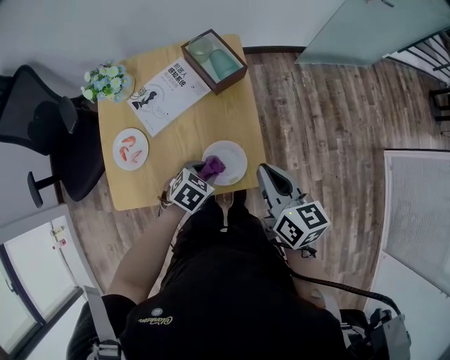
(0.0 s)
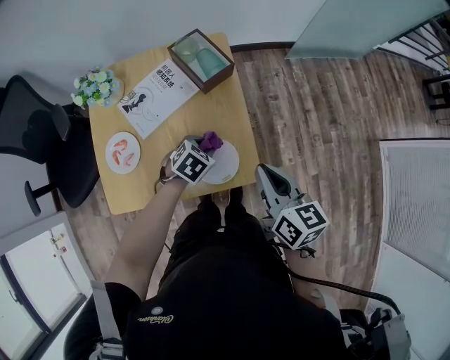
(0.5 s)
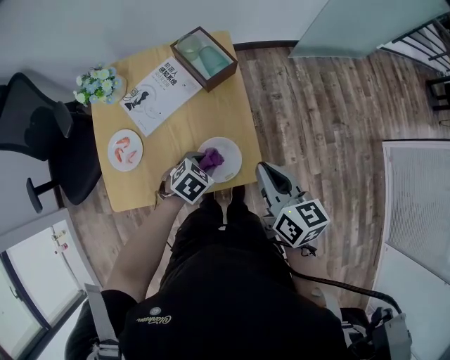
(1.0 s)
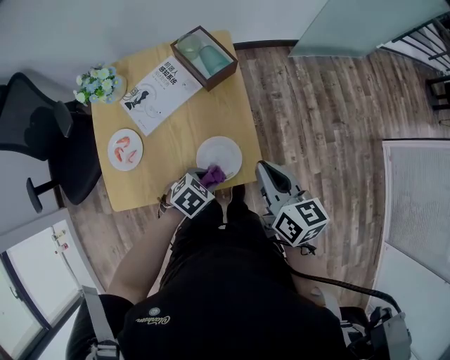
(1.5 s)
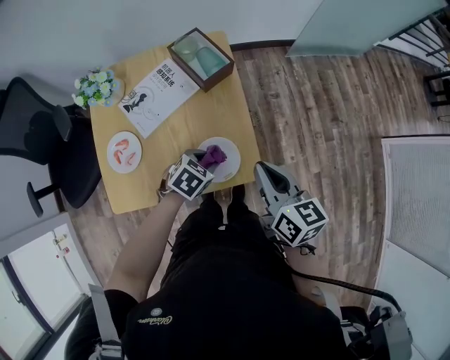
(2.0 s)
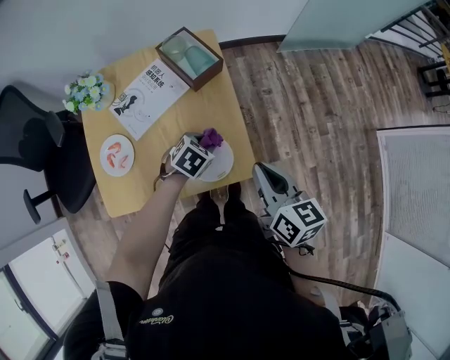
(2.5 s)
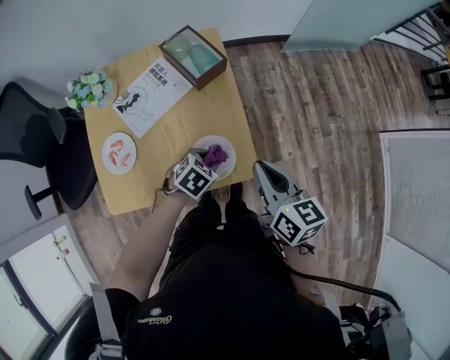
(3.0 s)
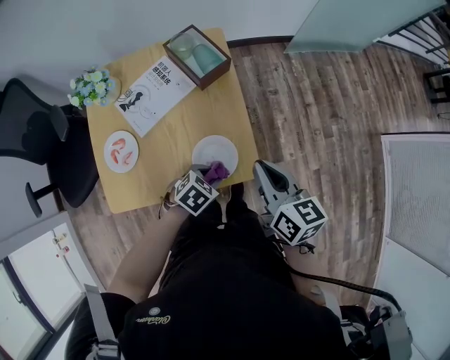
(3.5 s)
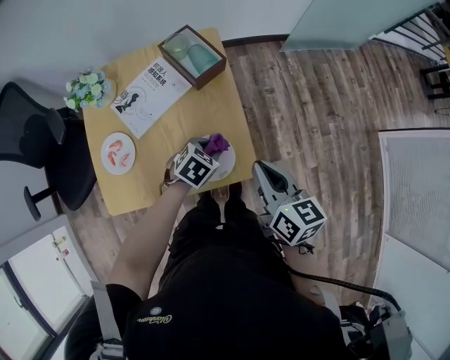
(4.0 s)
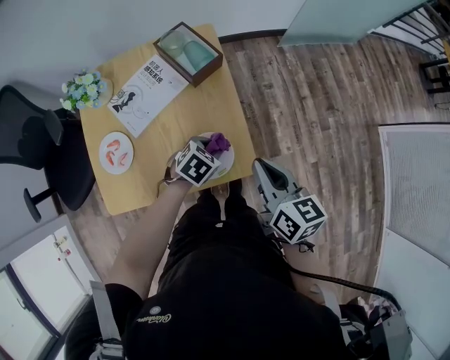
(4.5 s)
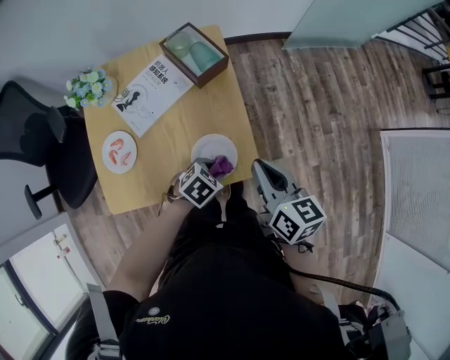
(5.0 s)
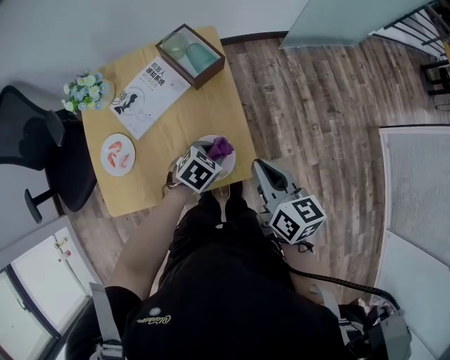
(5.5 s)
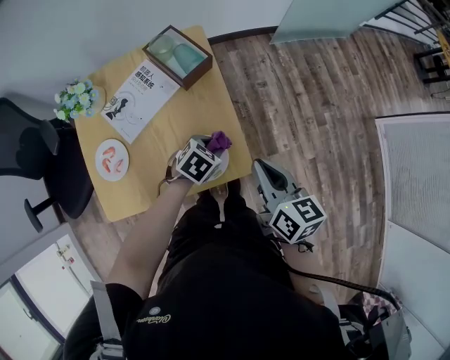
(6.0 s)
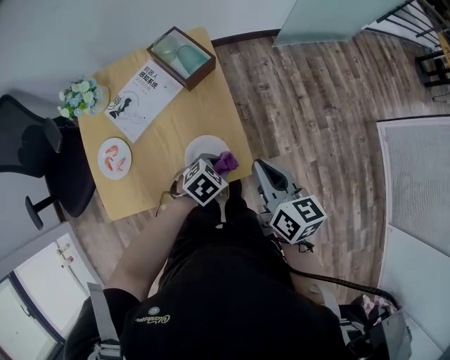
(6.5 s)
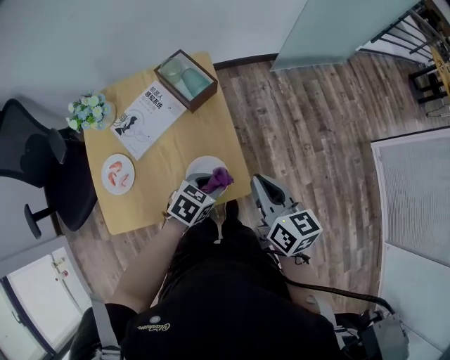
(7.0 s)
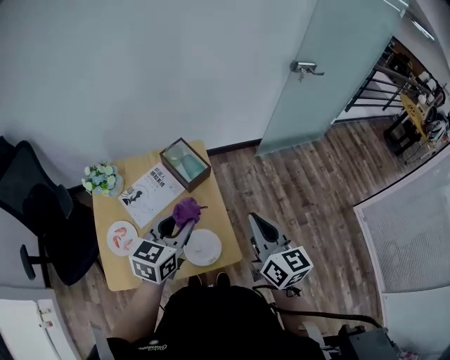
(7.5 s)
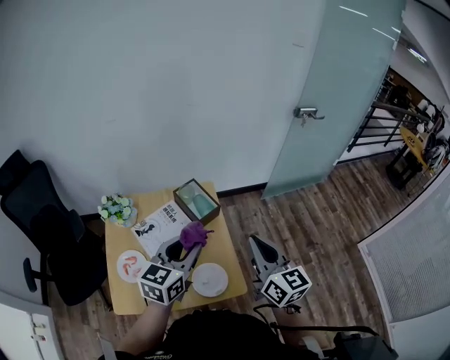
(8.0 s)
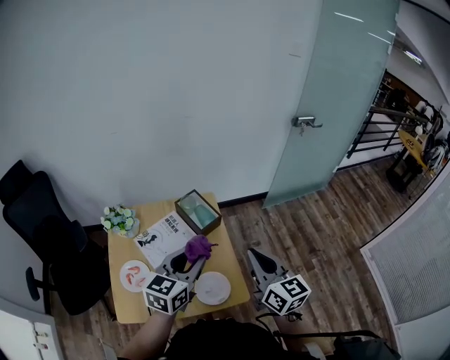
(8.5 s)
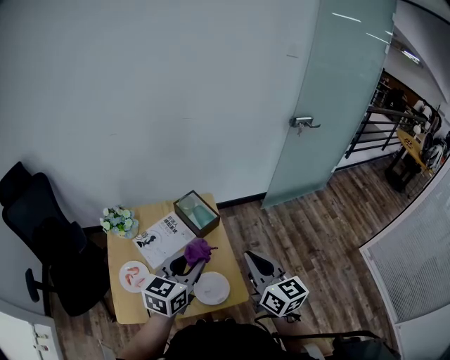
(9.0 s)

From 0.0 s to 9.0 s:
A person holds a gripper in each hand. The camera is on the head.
From 0.0 s to 2.0 s: The left gripper swings forward and backward, approximately 10 cm each way, with 2 reversals.
From 2.0 s to 4.5 s: The left gripper moves forward and backward over about 10 cm, changing direction 2 times.
From 4.5 s to 7.0 s: The left gripper swings forward and backward, roughly 10 cm each way, with 2 reversals.
From 7.0 s to 9.0 s: The left gripper travels upward by roughly 25 cm, and angles its fingers upward, by some 30 degrees, while the right gripper travels upward by roughly 15 cm, and swivels approximately 20 degrees.

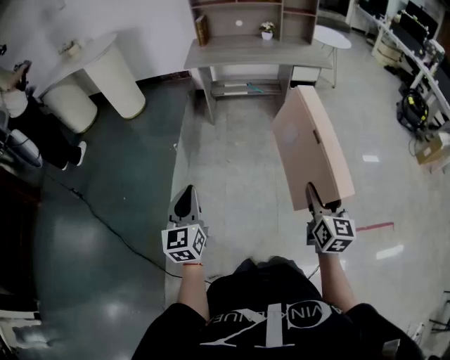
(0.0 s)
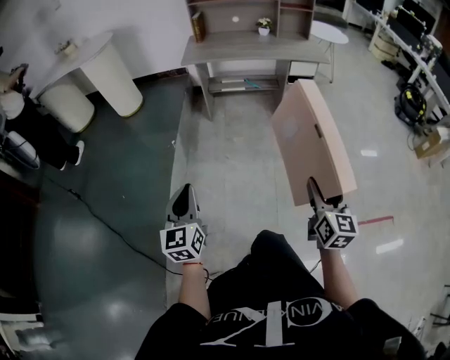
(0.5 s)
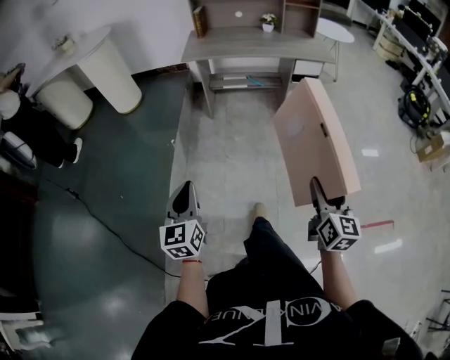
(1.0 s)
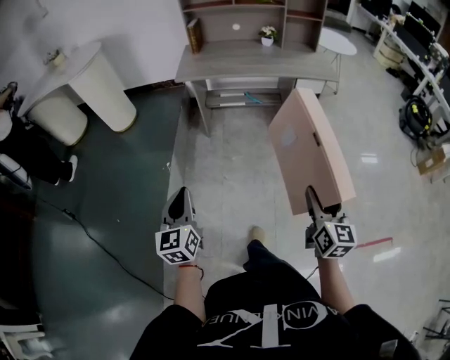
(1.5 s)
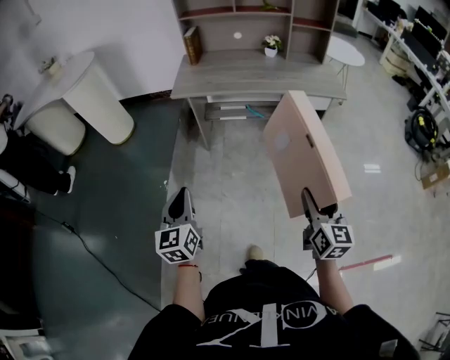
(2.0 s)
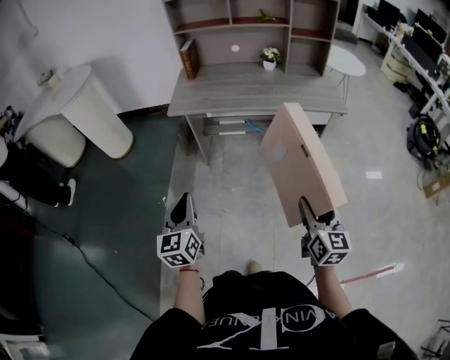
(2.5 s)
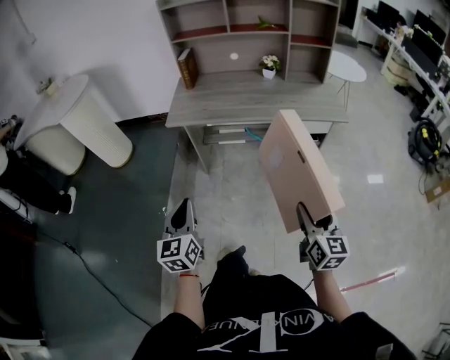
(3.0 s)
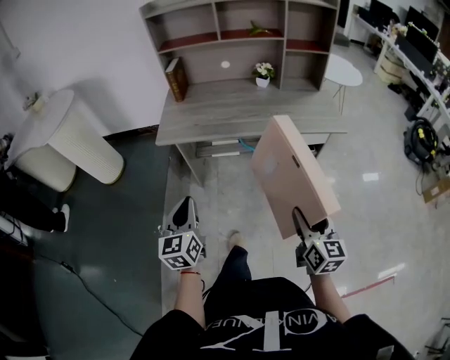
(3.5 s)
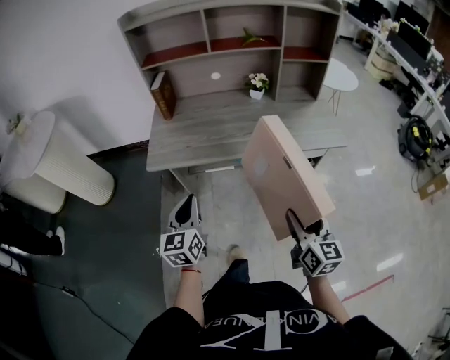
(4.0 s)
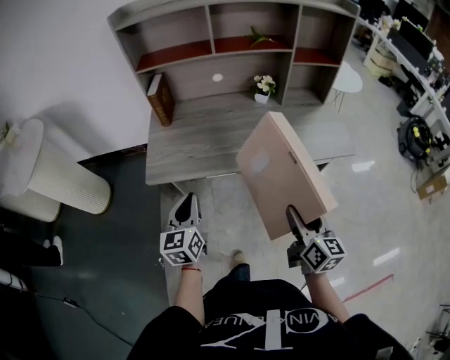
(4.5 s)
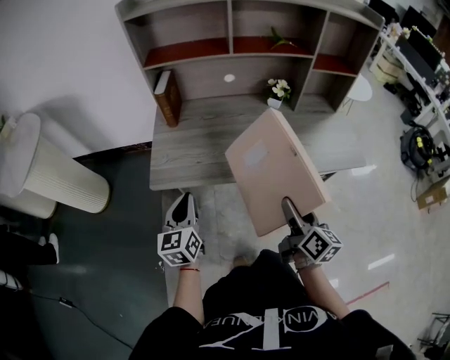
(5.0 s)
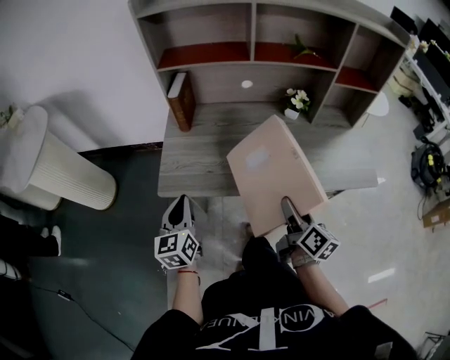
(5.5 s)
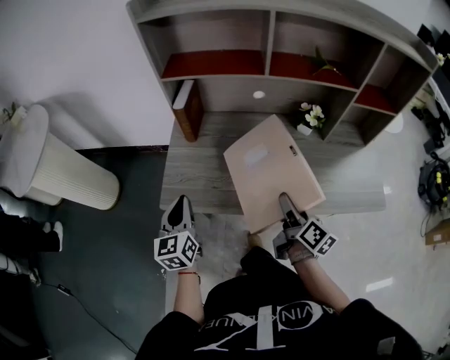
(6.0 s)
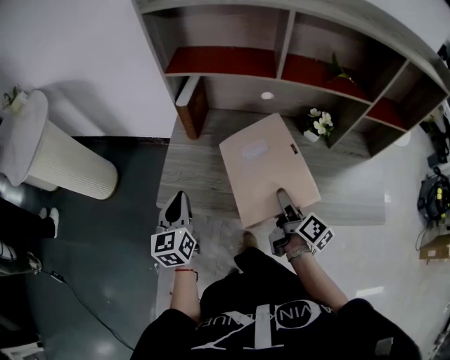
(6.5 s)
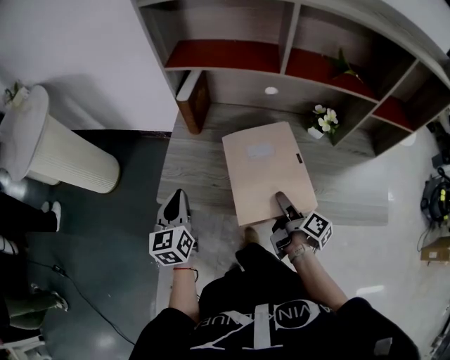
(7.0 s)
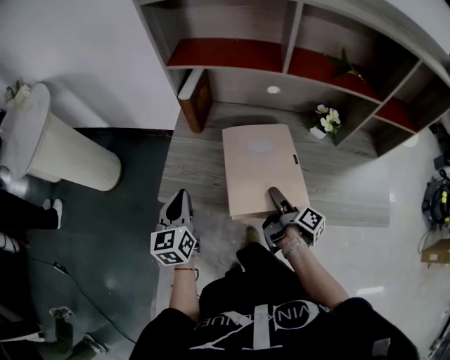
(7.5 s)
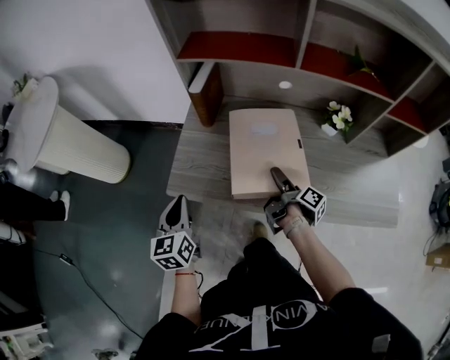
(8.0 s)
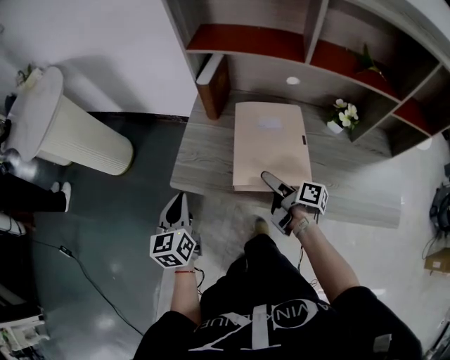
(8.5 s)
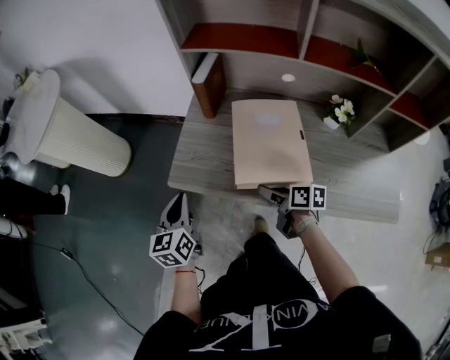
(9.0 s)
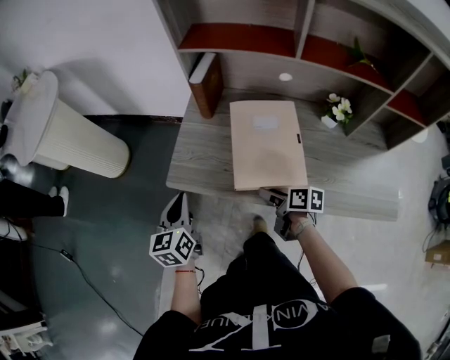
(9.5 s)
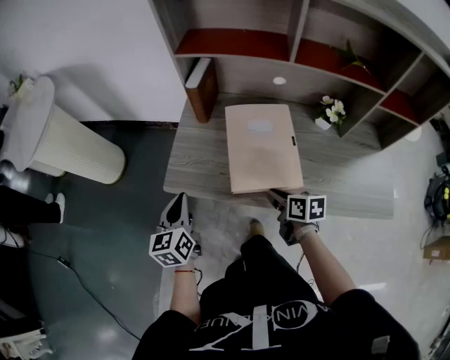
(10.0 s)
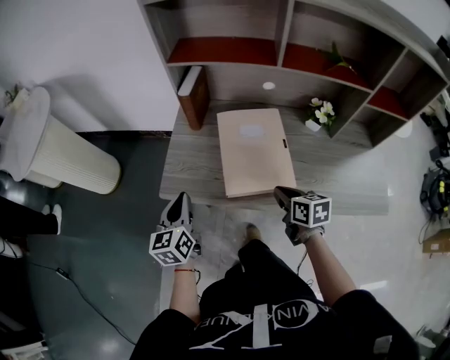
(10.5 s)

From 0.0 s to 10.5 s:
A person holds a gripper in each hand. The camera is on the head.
From 0.0 s to 2.0 s: The two grippers go roughly 30 cm forward.
From 2.0 s to 4.0 s: The two grippers go approximately 30 cm forward.
From 4.0 s to 6.5 s: Both grippers travel together forward, some 35 cm. The right gripper rotates around the line of its fingers by roughly 40 degrees, clockwise from behind.
From 6.5 s to 8.5 s: The left gripper travels to the left by about 5 cm, while the right gripper moves to the left and downward, about 10 cm, changes its angle by about 30 degrees, and opens its fingers.
From 8.5 s to 10.5 s: The right gripper shifts some 5 cm backward, rotates around the line of its fingers by approximately 40 degrees, counterclockwise from behind, and closes its fingers.

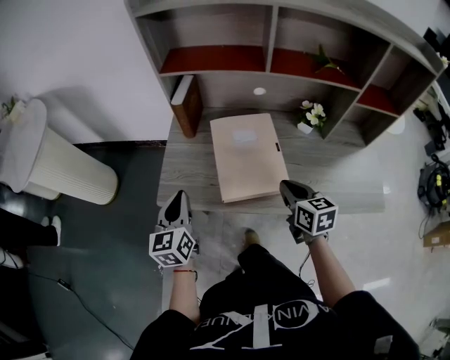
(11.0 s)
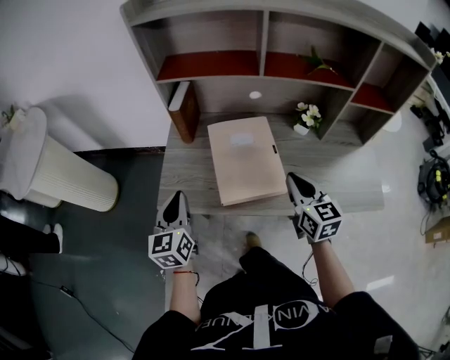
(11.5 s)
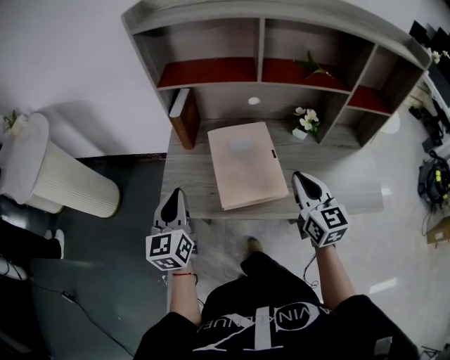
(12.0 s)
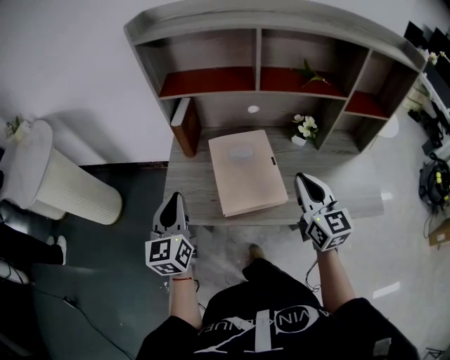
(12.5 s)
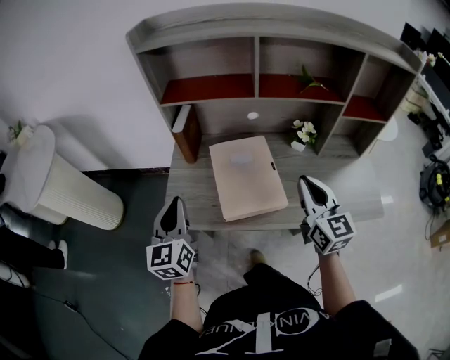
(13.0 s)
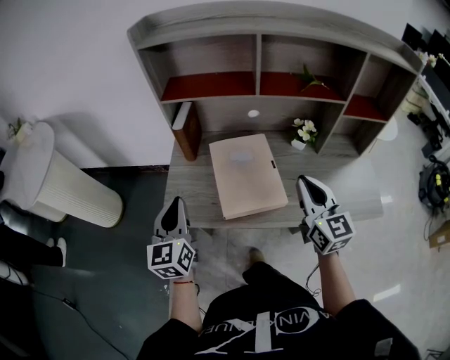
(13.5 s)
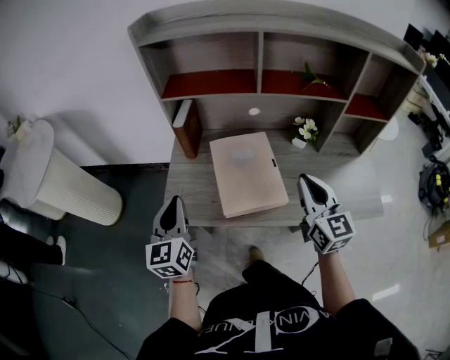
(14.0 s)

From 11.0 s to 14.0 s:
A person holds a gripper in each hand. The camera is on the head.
From 11.0 s to 12.5 s: The right gripper heads upward, covering approximately 15 cm, and rotates about 30 degrees. Meanwhile the left gripper travels upward by roughly 10 cm.
From 12.5 s to 14.0 s: The grippers move only a little.

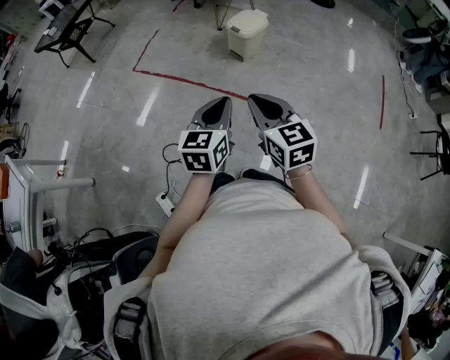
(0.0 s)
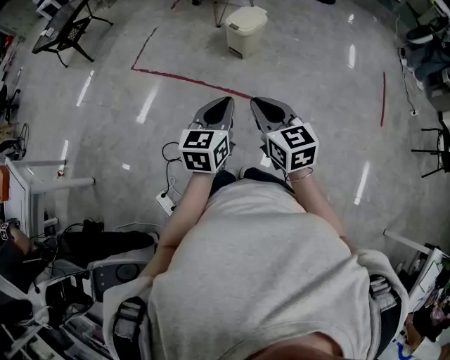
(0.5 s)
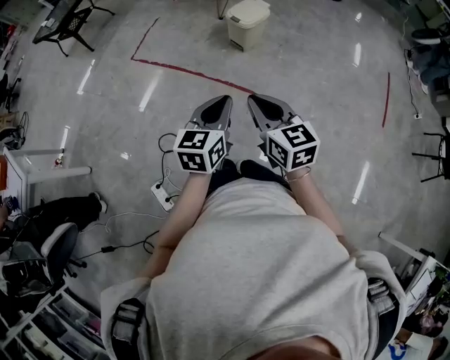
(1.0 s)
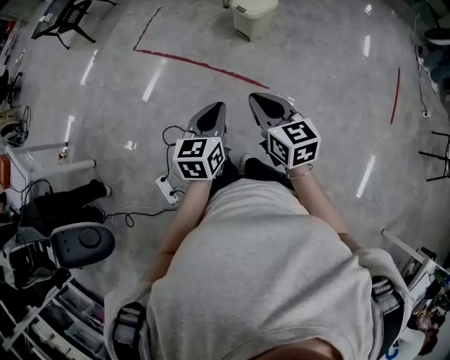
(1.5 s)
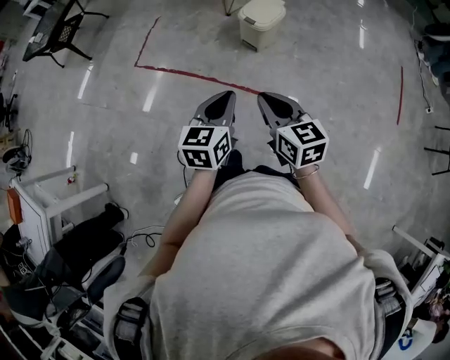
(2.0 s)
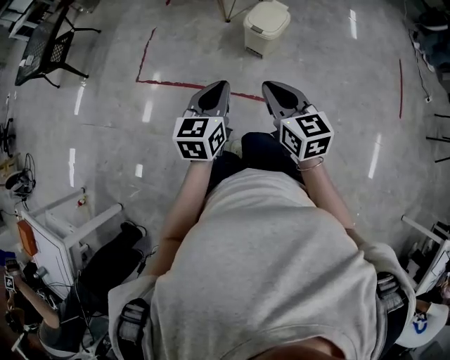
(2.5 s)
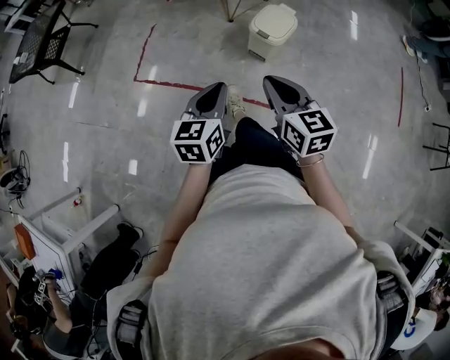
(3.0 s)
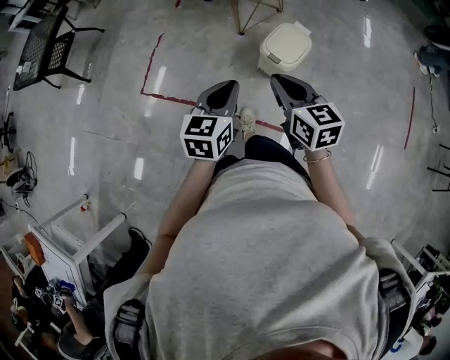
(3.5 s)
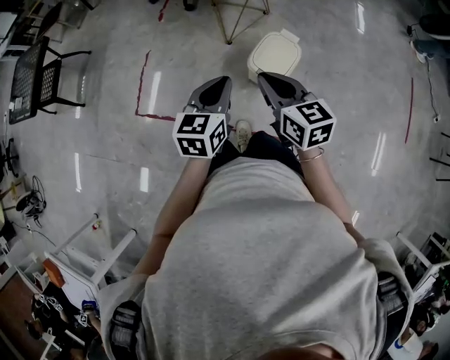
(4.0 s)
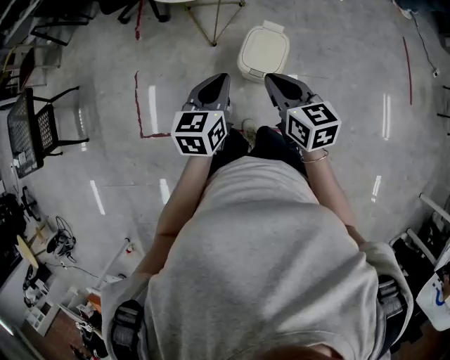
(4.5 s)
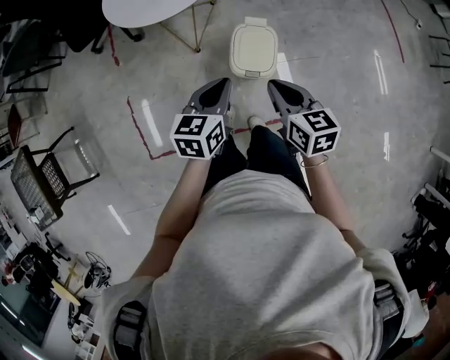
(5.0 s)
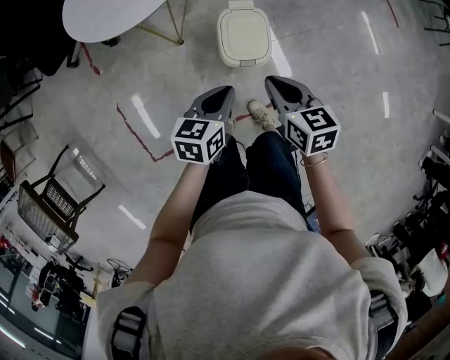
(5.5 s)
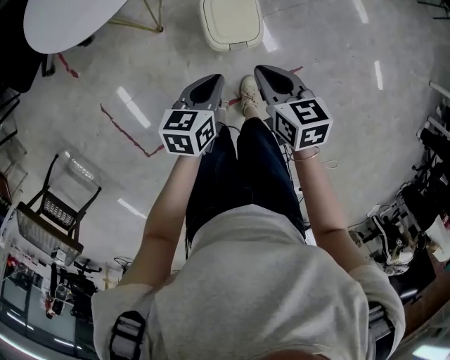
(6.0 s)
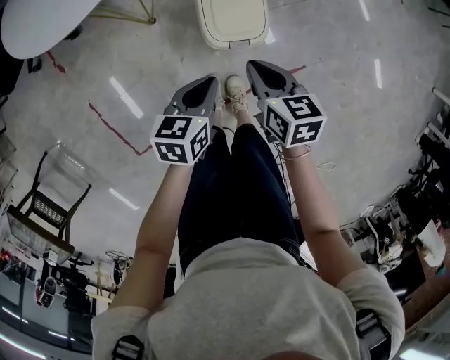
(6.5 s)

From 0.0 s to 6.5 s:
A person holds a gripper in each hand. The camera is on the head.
From 0.0 s to 2.0 s: Both grippers move forward, roughly 15 cm.
From 2.0 s to 4.5 s: Both grippers are carried forward, some 50 cm. The right gripper turns by some 20 degrees, while the left gripper rotates approximately 20 degrees.
From 4.5 s to 6.5 s: The two grippers go roughly 25 cm downward. The right gripper swivels some 40 degrees, while the left gripper swivels roughly 40 degrees.
